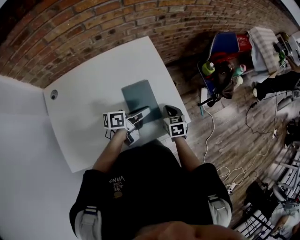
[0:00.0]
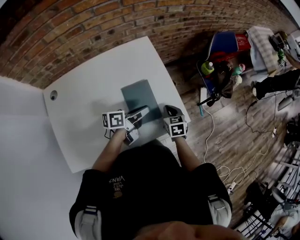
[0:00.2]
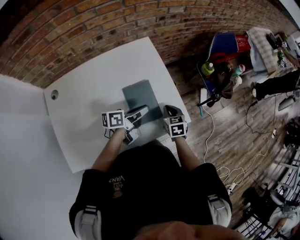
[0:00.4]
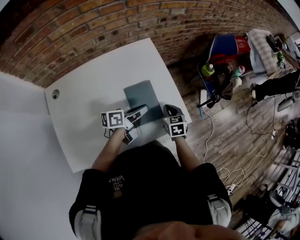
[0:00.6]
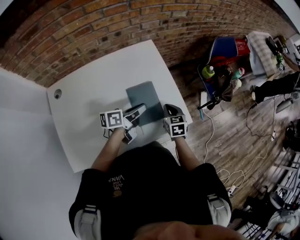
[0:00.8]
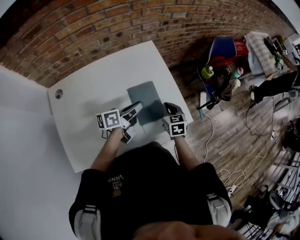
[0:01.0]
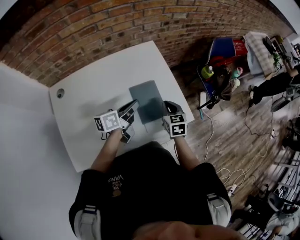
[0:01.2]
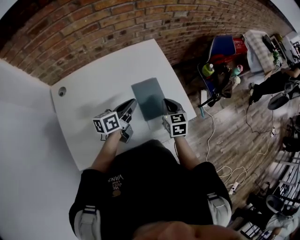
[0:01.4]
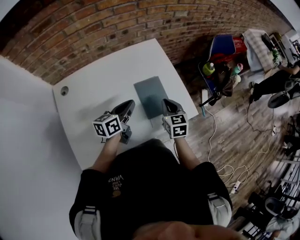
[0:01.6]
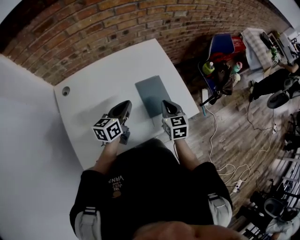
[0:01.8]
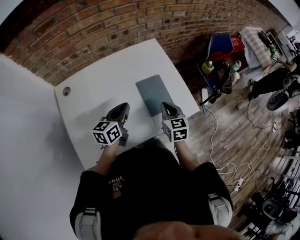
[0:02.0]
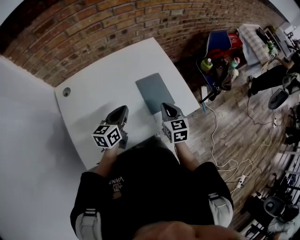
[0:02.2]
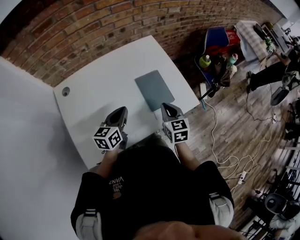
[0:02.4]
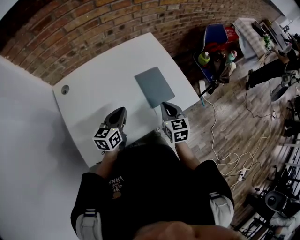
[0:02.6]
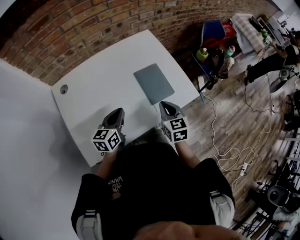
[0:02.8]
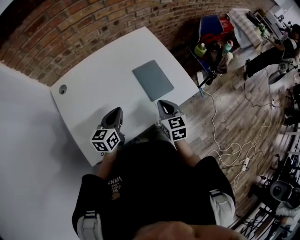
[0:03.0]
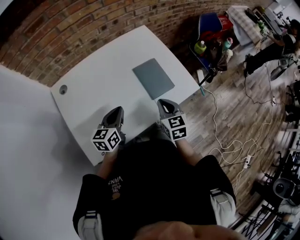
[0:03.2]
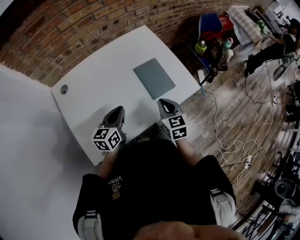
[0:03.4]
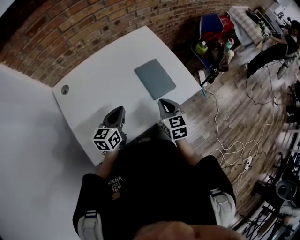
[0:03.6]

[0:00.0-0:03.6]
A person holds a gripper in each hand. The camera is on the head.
0:00.0 to 0:01.8: The left gripper heads to the left and backward, covering about 20 cm, and changes its angle by some 40 degrees, while the right gripper goes about 15 cm upward, to the left and backward.
0:01.8 to 0:03.6: The right gripper is displaced backward by some 10 cm, while the left gripper is displaced backward and to the left by some 10 cm.

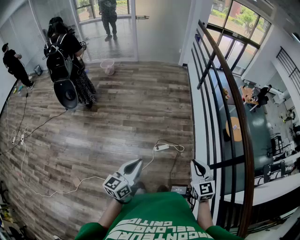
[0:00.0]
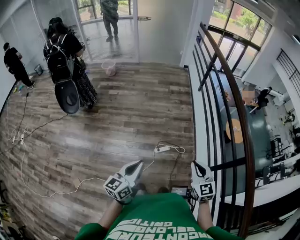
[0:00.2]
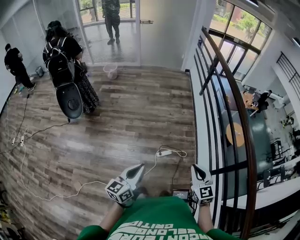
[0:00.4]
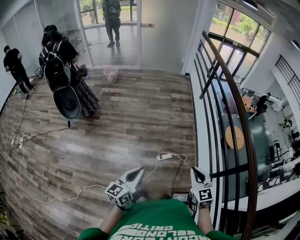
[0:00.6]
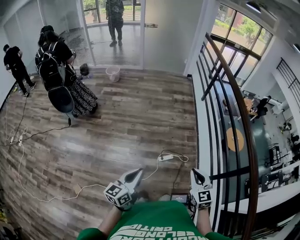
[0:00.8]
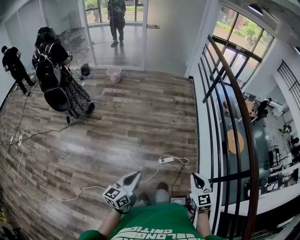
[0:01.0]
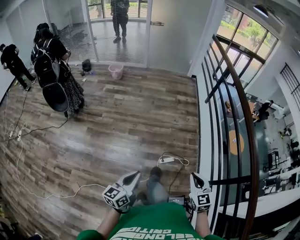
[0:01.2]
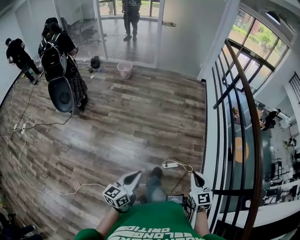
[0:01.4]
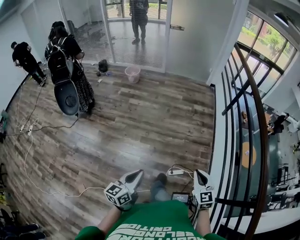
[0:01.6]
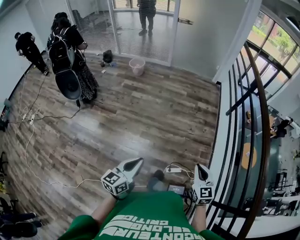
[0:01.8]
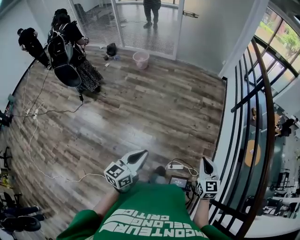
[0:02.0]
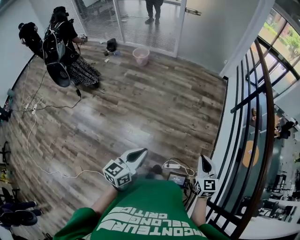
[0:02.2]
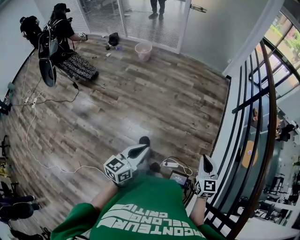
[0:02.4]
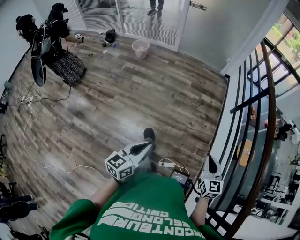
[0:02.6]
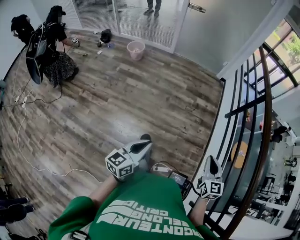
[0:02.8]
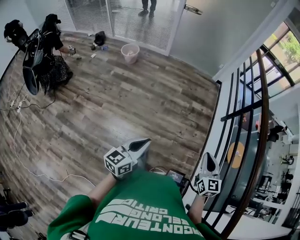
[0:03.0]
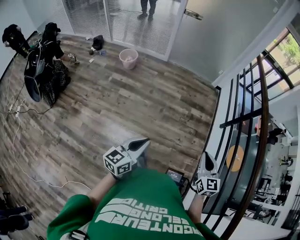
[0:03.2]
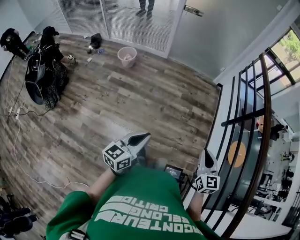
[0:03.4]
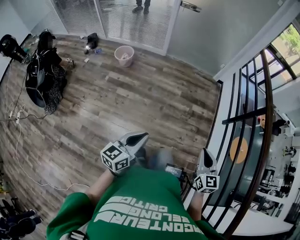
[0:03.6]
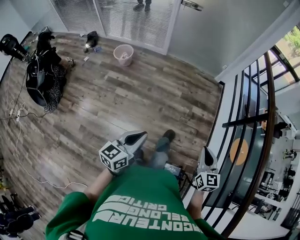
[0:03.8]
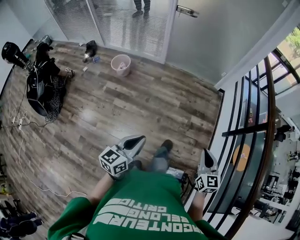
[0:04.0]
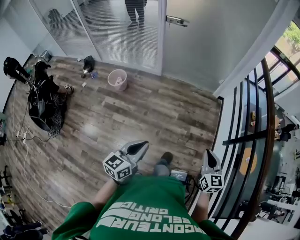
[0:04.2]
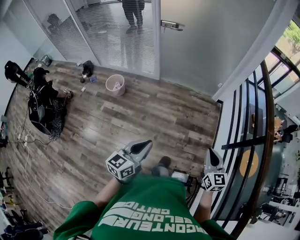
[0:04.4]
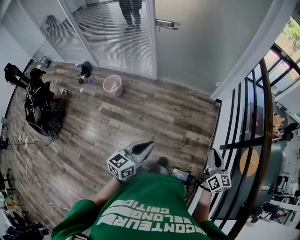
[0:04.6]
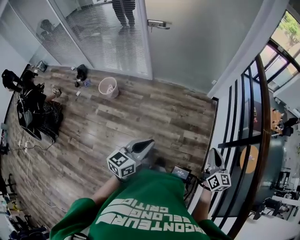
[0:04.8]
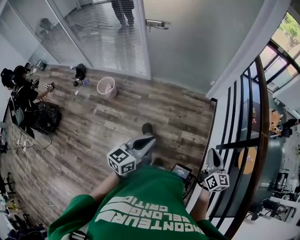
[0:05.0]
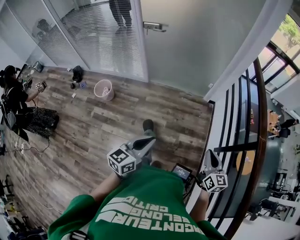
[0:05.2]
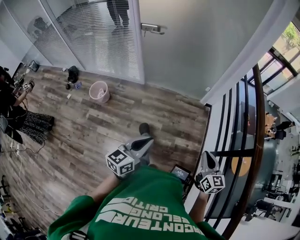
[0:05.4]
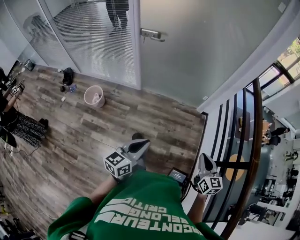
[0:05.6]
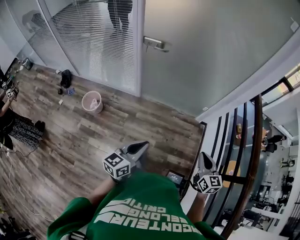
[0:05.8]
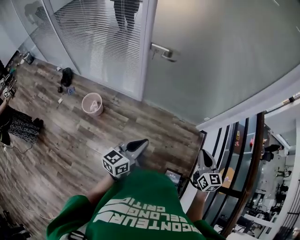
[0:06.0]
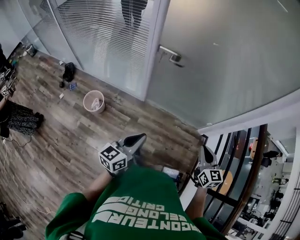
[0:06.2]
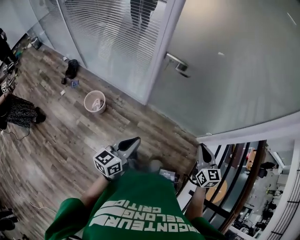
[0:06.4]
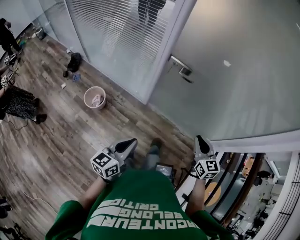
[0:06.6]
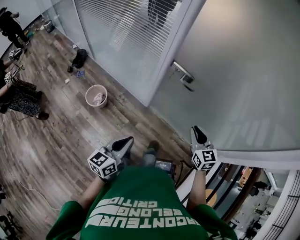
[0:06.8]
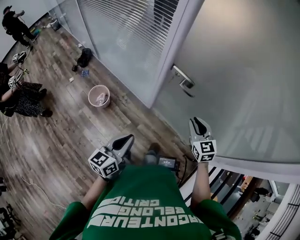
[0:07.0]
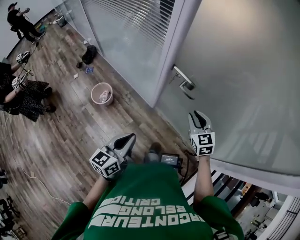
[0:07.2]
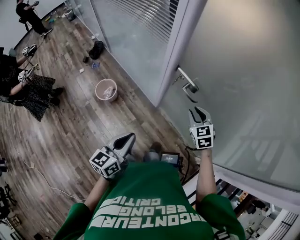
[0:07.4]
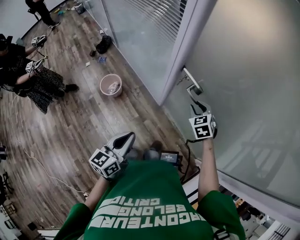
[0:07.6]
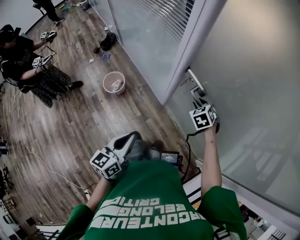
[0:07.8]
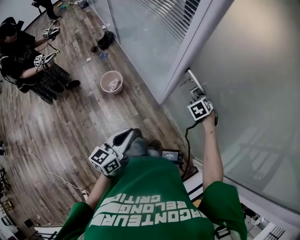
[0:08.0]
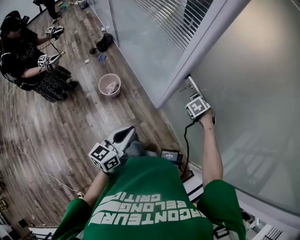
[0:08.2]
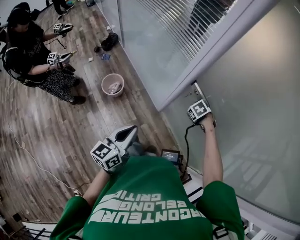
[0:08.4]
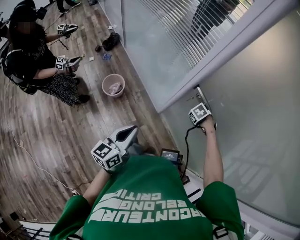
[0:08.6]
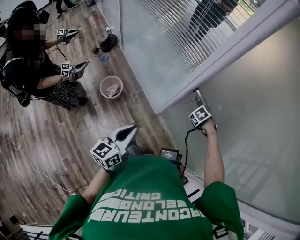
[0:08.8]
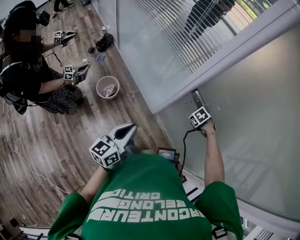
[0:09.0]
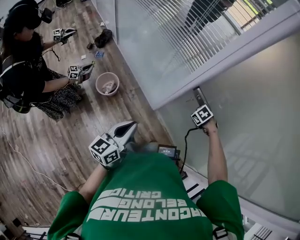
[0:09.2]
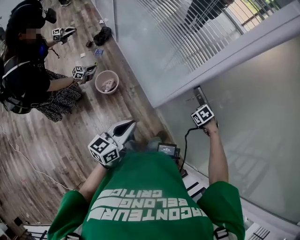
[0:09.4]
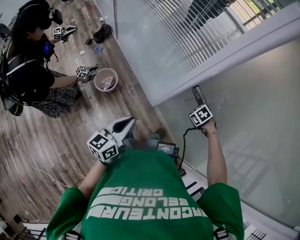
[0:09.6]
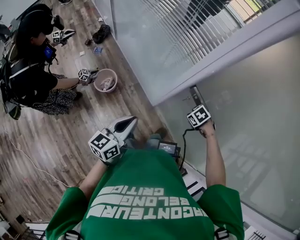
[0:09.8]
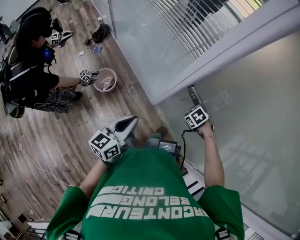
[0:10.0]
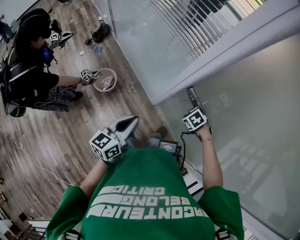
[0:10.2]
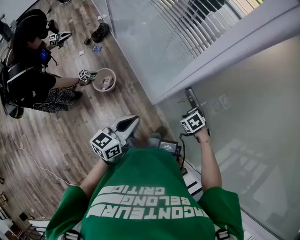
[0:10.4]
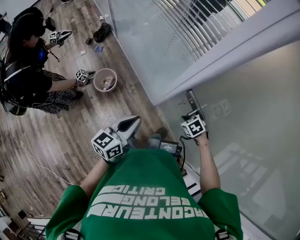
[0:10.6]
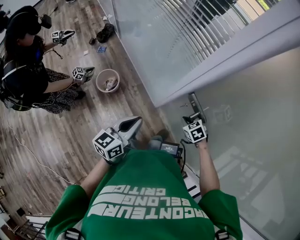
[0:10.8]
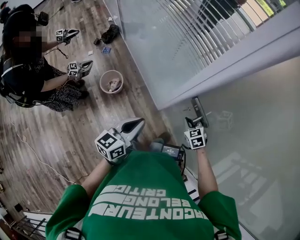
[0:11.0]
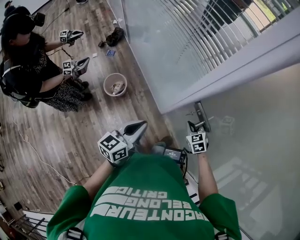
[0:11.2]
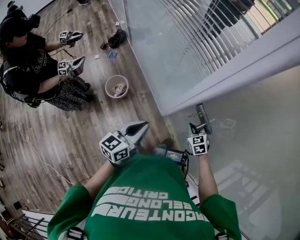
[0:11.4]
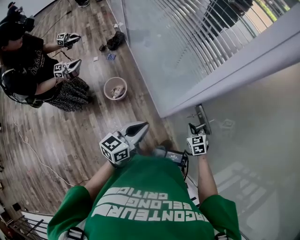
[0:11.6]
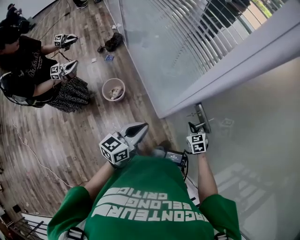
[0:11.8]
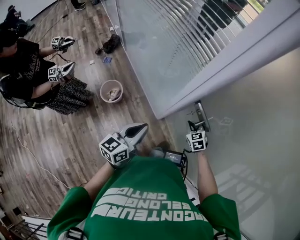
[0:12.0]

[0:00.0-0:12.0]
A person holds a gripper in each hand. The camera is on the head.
0:00.0 to 0:01.6: The right gripper moves forward and to the left, about 25 cm. Meanwhile the left gripper shifts about 20 cm to the left and forward.
0:01.6 to 0:03.0: Both grippers move forward, approximately 35 cm.
0:03.0 to 0:04.4: Both grippers are carried forward, about 40 cm.
0:04.4 to 0:06.0: Both grippers travel together forward, roughly 40 cm.
0:06.0 to 0:07.6: The left gripper ends up roughly 25 cm from where it was, and rotates approximately 40 degrees; the right gripper moves some 60 cm, rotates some 60 degrees, and opens.
0:07.6 to 0:09.0: The left gripper changes place by roughly 10 cm, while the right gripper moves downward, some 15 cm, tilts its fingers roughly 40 degrees downward, and closes its fingers.
0:09.0 to 0:10.4: The left gripper moves some 10 cm.
0:10.4 to 0:12.0: The right gripper moves about 5 cm, and tilts its fingers about 30 degrees upward.

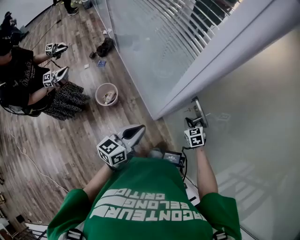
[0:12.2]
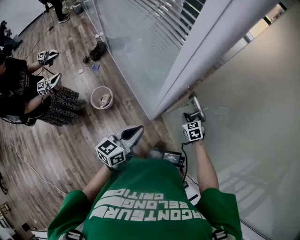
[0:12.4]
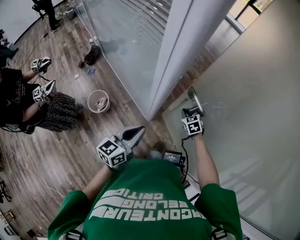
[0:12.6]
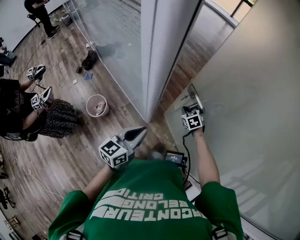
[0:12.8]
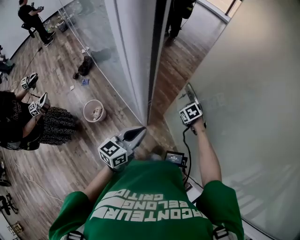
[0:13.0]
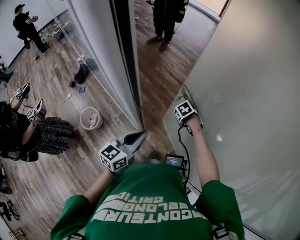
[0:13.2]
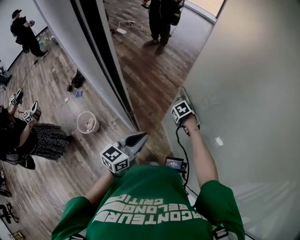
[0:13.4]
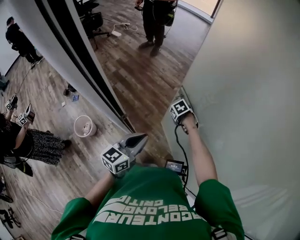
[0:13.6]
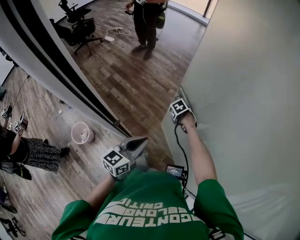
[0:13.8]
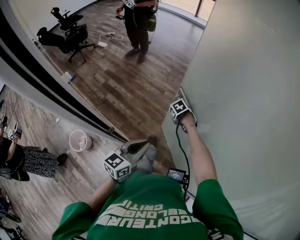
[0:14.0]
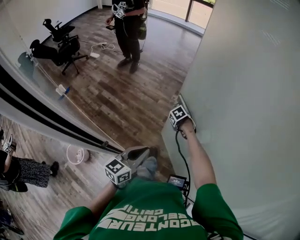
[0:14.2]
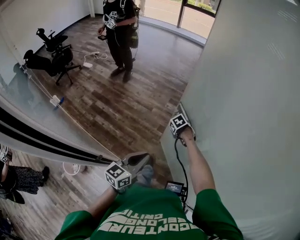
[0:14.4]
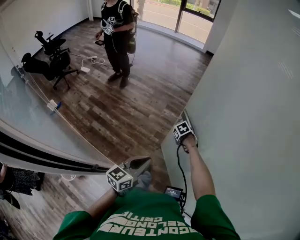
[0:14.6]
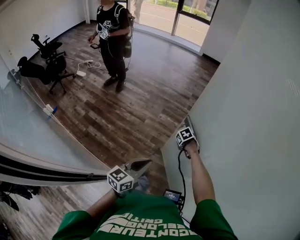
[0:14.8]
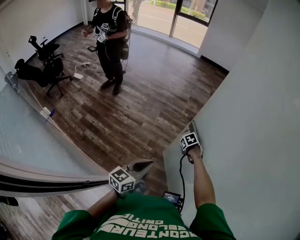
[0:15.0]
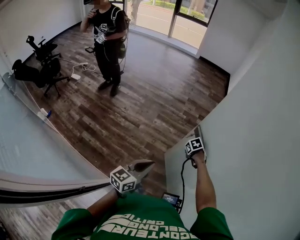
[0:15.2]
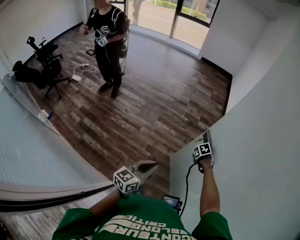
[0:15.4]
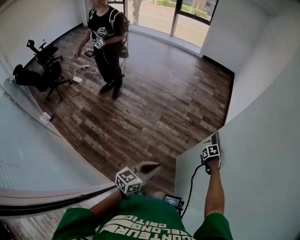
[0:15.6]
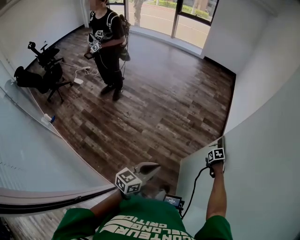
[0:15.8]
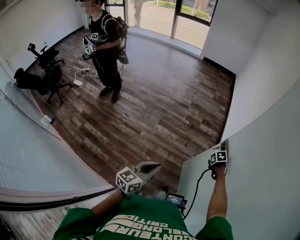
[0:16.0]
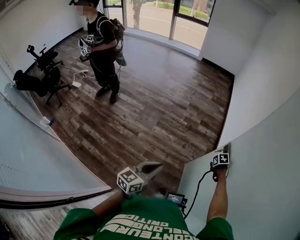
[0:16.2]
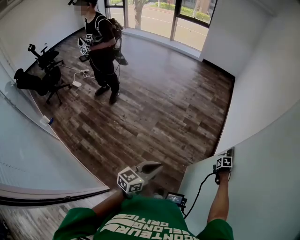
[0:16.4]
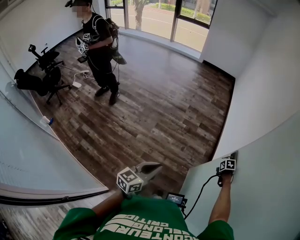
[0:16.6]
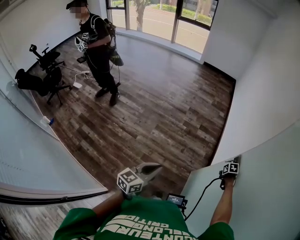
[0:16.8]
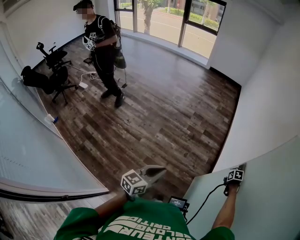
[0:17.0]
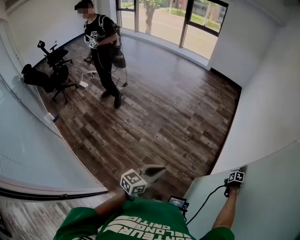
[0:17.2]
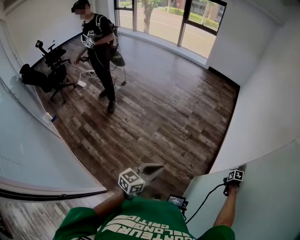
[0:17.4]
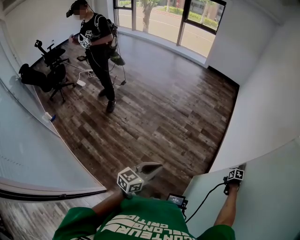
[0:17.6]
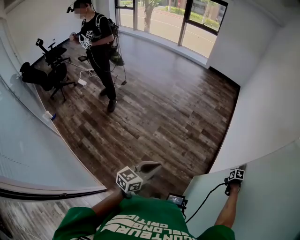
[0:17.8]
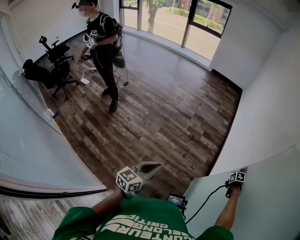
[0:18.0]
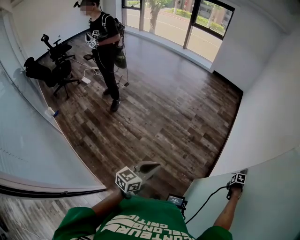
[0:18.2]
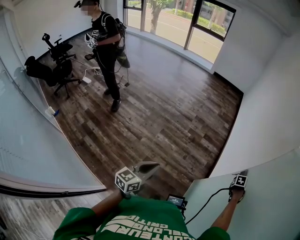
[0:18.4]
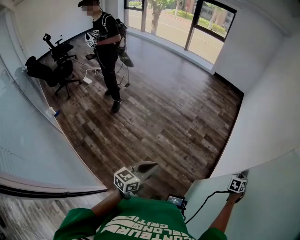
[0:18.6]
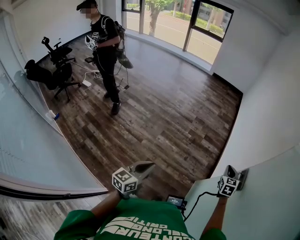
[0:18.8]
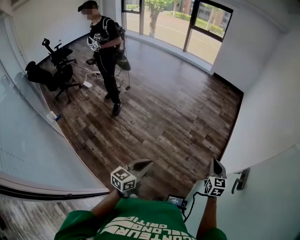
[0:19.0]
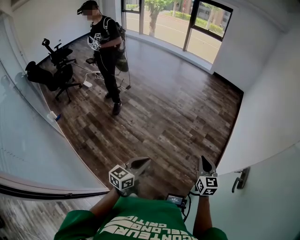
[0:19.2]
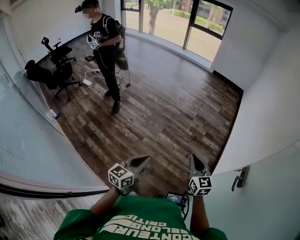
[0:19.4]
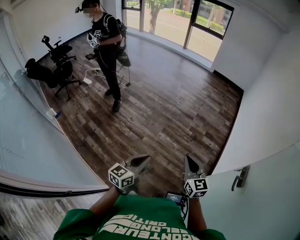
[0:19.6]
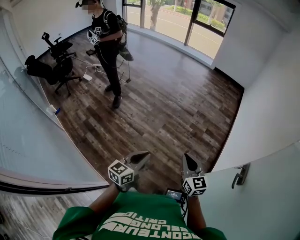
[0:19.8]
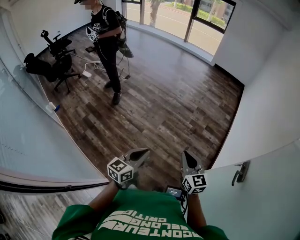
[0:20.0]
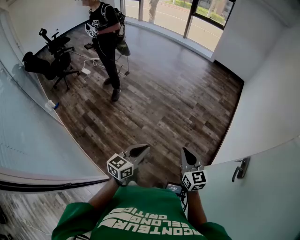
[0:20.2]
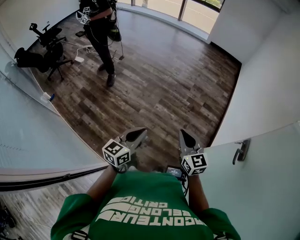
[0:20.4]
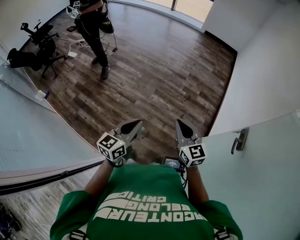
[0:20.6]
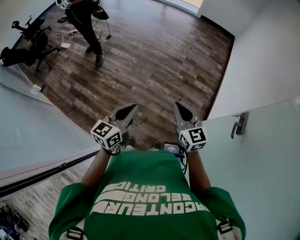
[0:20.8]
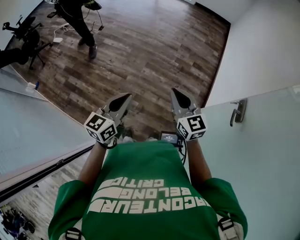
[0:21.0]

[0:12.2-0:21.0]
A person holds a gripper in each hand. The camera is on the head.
0:12.2 to 0:13.6: The left gripper changes place by some 25 cm, while the right gripper changes place by about 20 cm, and changes its angle by some 40 degrees.
0:13.6 to 0:15.2: The right gripper moves approximately 35 cm, and changes its angle by some 30 degrees. Meanwhile the left gripper shifts by some 30 cm, and turns by about 20 degrees.
0:15.2 to 0:16.6: The left gripper changes place by roughly 20 cm, while the right gripper shifts by approximately 35 cm, and changes its angle by roughly 30 degrees.
0:16.6 to 0:18.0: The right gripper shifts by roughly 10 cm.
0:18.0 to 0:19.6: The right gripper shifts by some 50 cm, tips its fingers upward by roughly 70 degrees, and opens and closes again, while the left gripper changes place by approximately 10 cm.
0:19.6 to 0:21.0: The grippers stay close to where they were, moving slightly.
